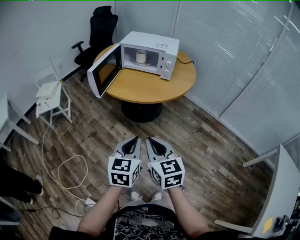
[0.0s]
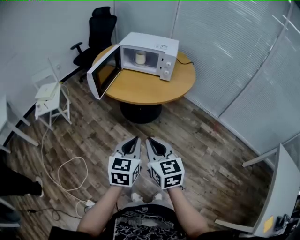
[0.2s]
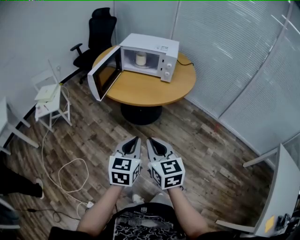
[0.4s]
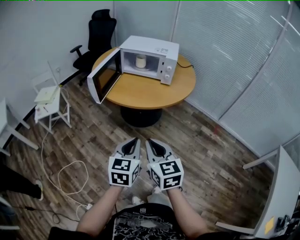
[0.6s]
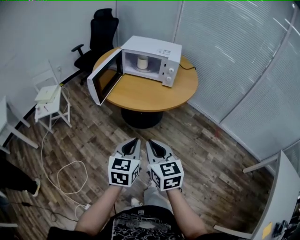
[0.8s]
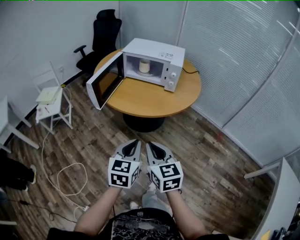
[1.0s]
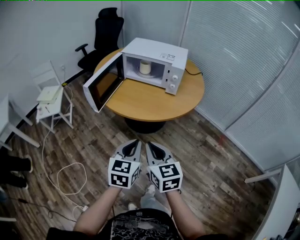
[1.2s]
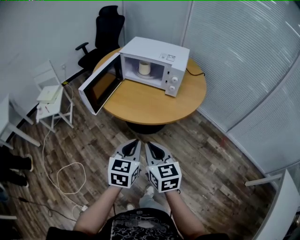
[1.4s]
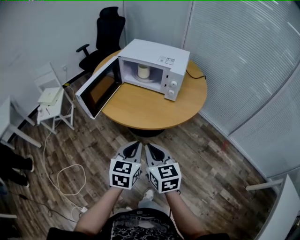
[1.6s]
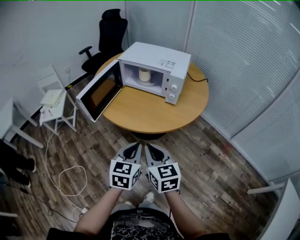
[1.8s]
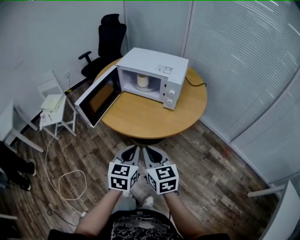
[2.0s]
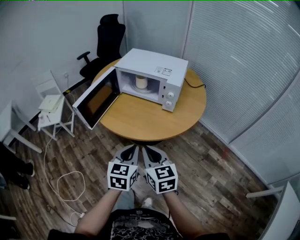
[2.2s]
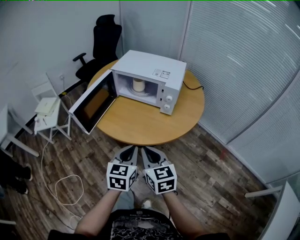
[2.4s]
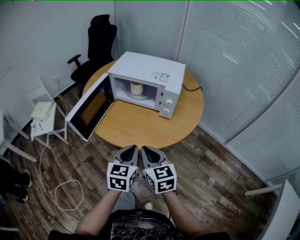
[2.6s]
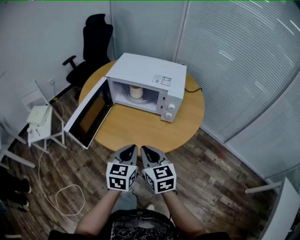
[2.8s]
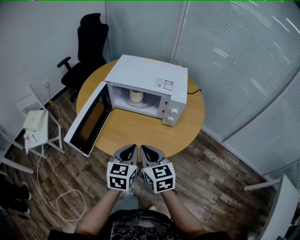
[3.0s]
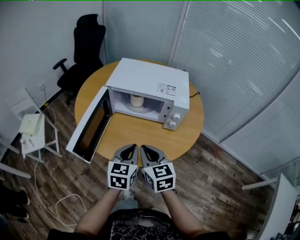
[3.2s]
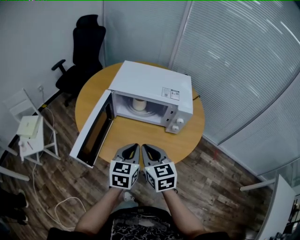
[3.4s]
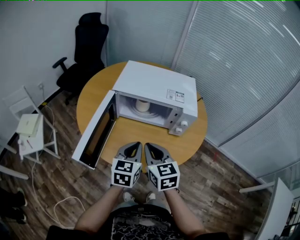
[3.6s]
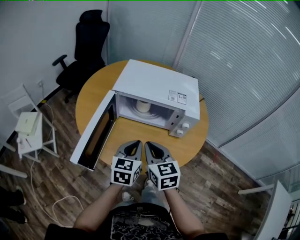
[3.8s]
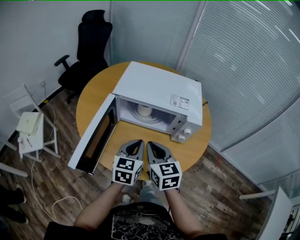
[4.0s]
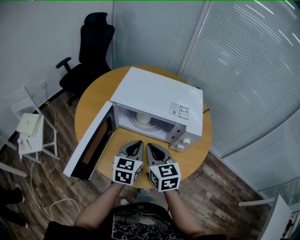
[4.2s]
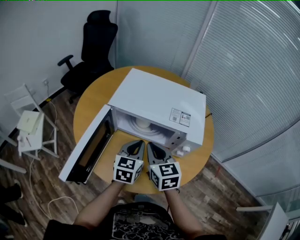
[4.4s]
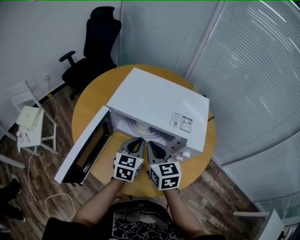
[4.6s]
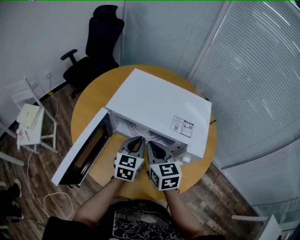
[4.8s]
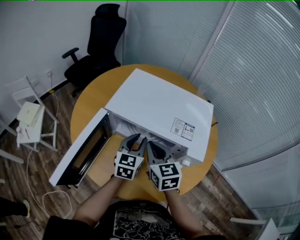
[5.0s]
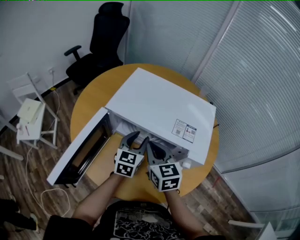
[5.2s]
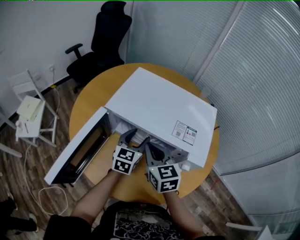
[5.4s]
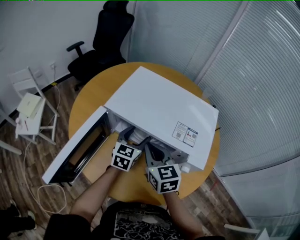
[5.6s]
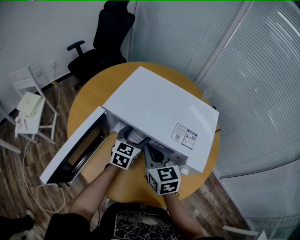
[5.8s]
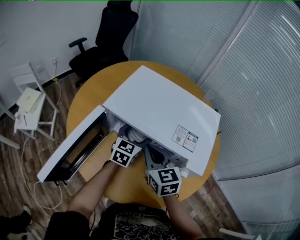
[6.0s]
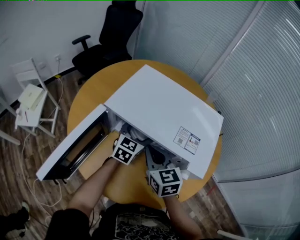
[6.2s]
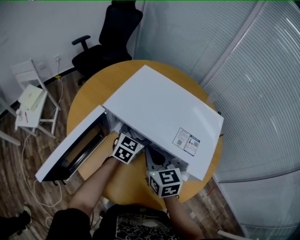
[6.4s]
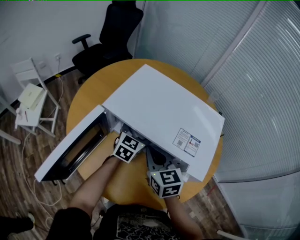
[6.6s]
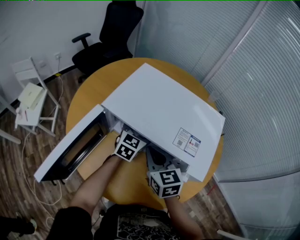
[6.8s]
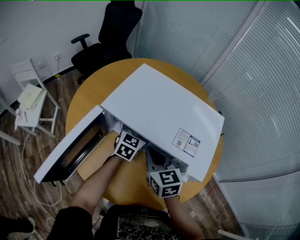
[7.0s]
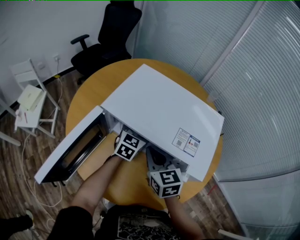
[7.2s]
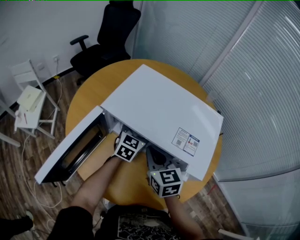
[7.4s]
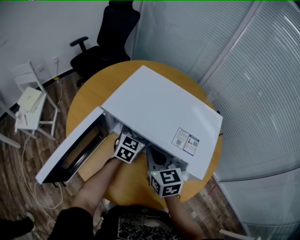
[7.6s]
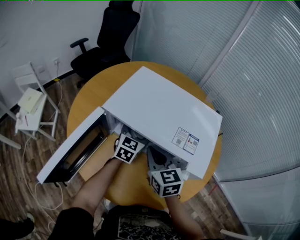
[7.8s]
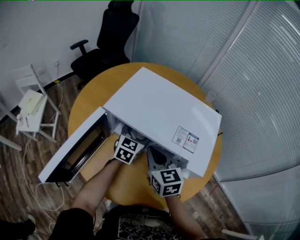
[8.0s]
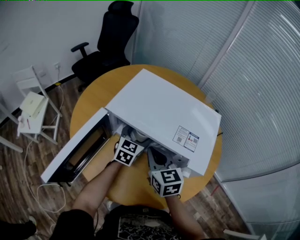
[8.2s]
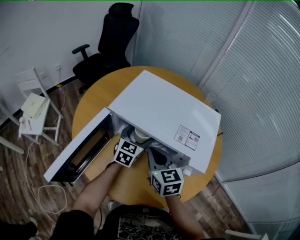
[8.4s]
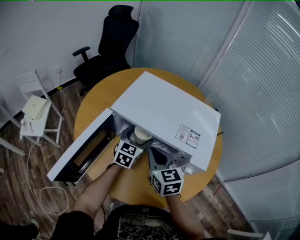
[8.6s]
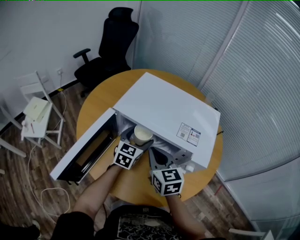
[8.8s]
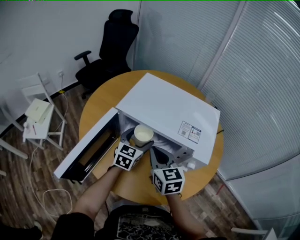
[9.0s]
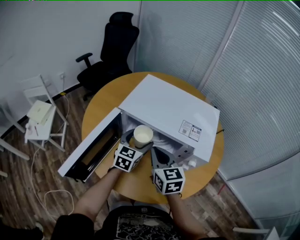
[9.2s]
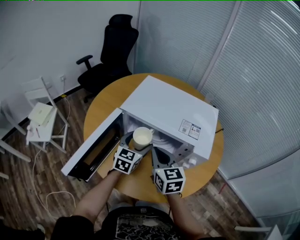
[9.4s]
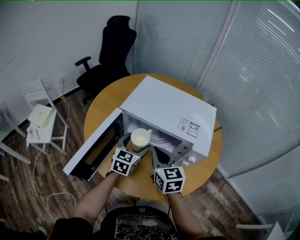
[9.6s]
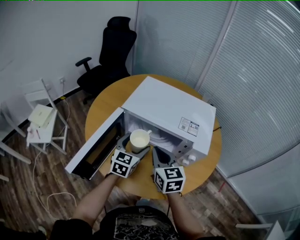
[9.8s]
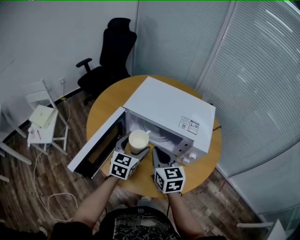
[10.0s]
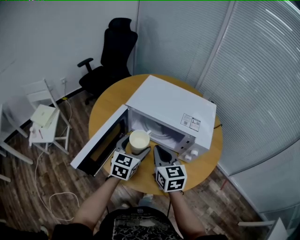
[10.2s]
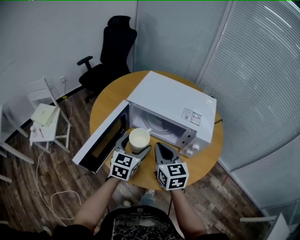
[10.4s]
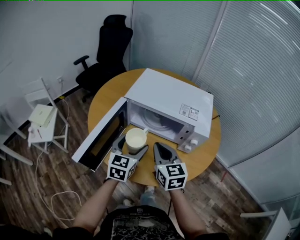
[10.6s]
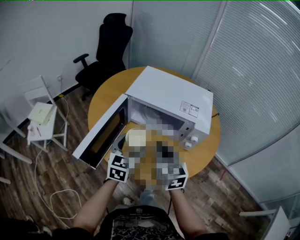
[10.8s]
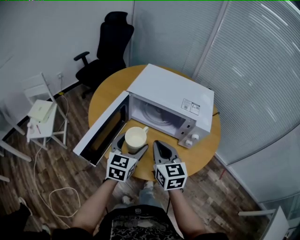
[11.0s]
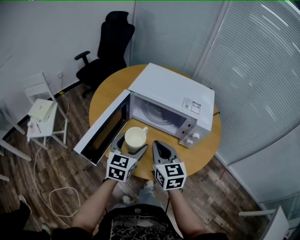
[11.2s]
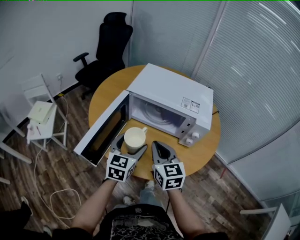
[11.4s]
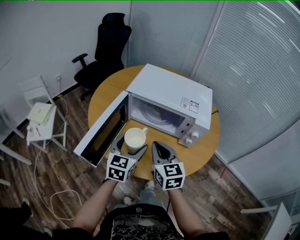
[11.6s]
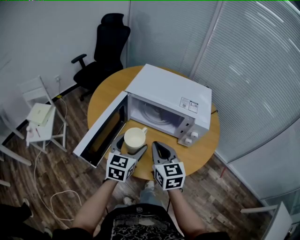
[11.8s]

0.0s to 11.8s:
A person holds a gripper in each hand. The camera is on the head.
0.0s to 1.4s: The two grippers go some 15 cm forward.
1.4s to 3.0s: The grippers both shift forward by approximately 25 cm.
3.0s to 4.4s: The grippers both shift forward by approximately 20 cm.
4.4s to 6.0s: The right gripper travels forward by approximately 10 cm. The left gripper moves forward and downward, approximately 15 cm, and opens its fingers.
6.0s to 7.4s: The grippers move only a little.
7.4s to 8.8s: The left gripper shifts about 5 cm backward. The right gripper changes place by approximately 5 cm.
8.8s to 10.4s: The right gripper travels backward by about 10 cm, while the left gripper shifts about 15 cm backward, upward and to the left.
10.4s to 11.8s: The grippers both shift backward by about 5 cm.

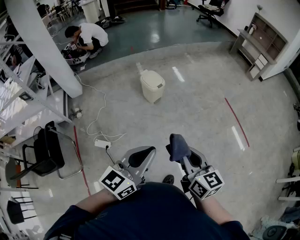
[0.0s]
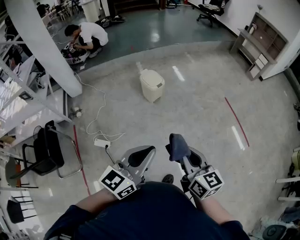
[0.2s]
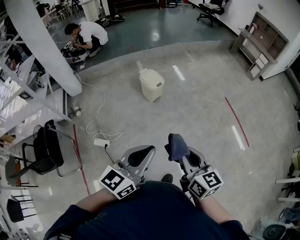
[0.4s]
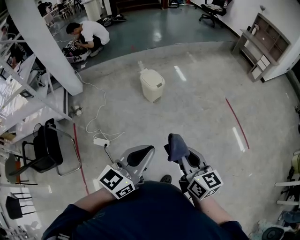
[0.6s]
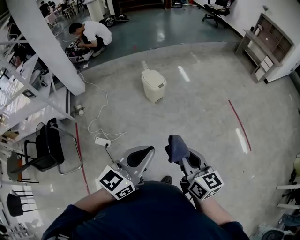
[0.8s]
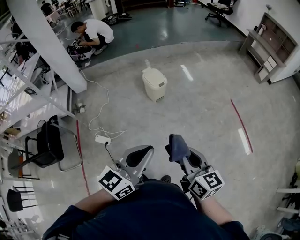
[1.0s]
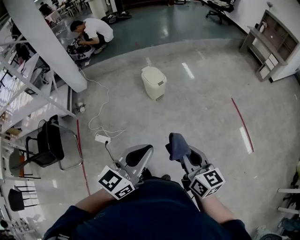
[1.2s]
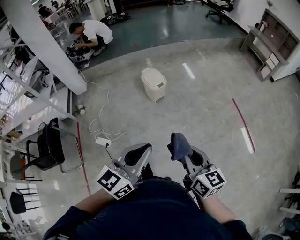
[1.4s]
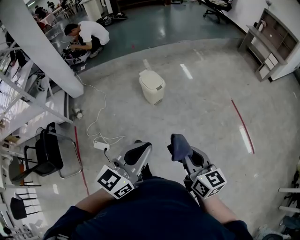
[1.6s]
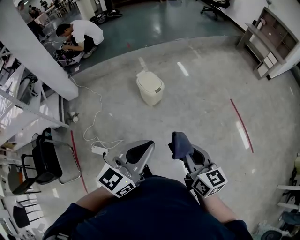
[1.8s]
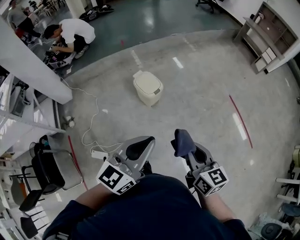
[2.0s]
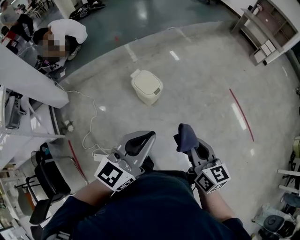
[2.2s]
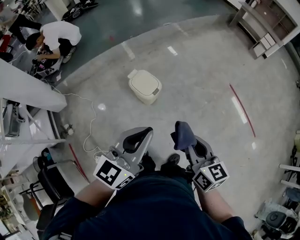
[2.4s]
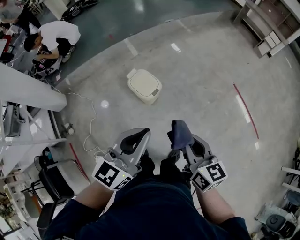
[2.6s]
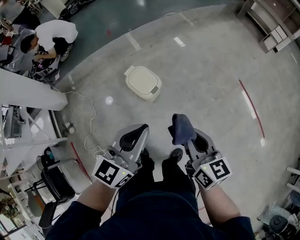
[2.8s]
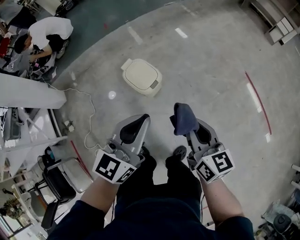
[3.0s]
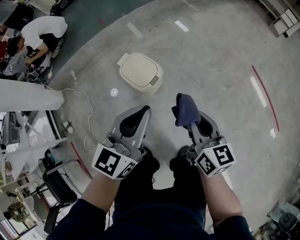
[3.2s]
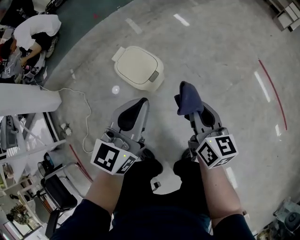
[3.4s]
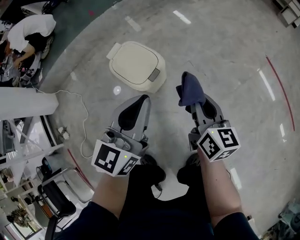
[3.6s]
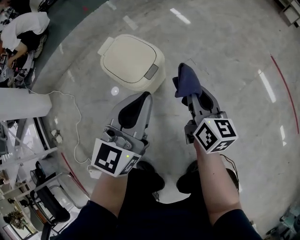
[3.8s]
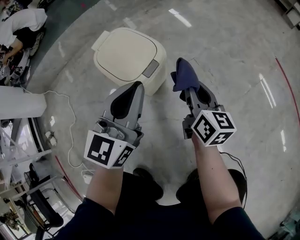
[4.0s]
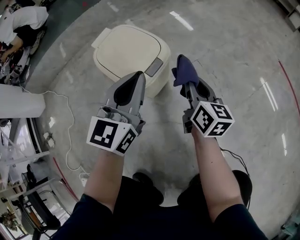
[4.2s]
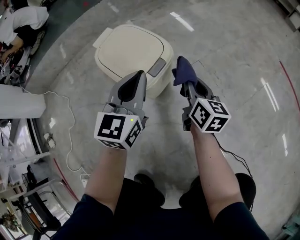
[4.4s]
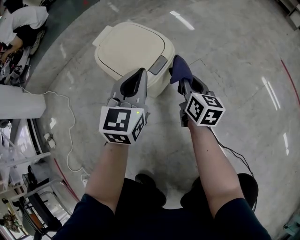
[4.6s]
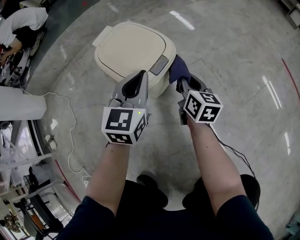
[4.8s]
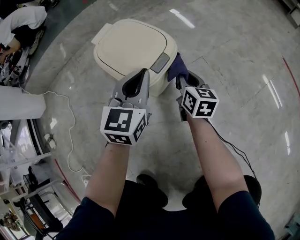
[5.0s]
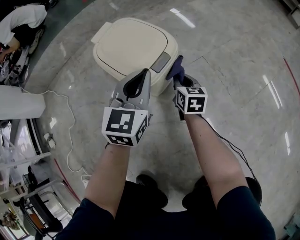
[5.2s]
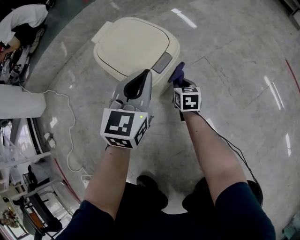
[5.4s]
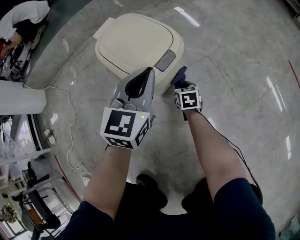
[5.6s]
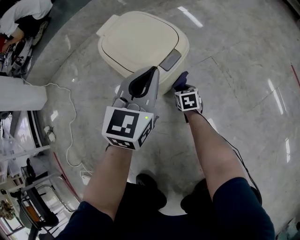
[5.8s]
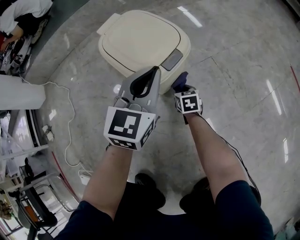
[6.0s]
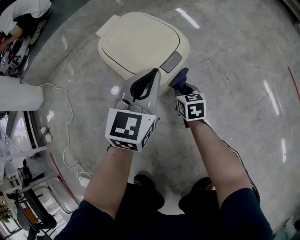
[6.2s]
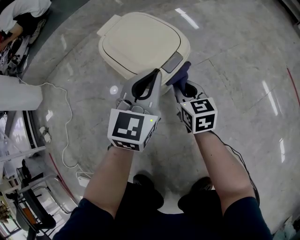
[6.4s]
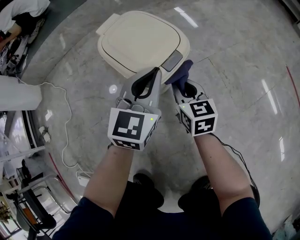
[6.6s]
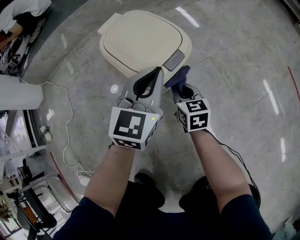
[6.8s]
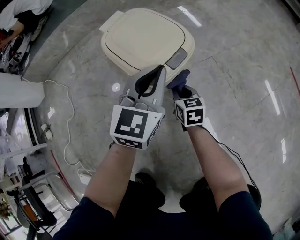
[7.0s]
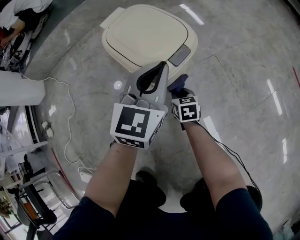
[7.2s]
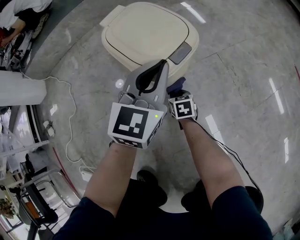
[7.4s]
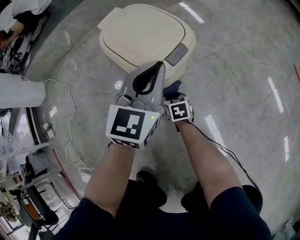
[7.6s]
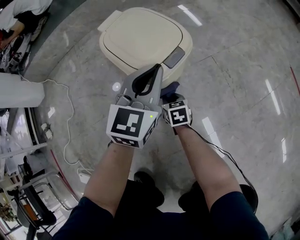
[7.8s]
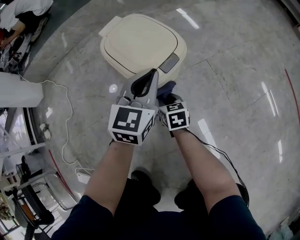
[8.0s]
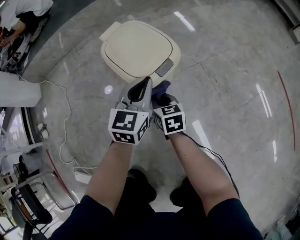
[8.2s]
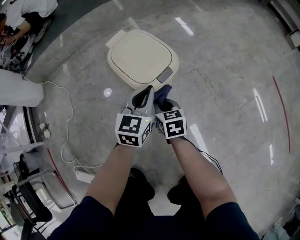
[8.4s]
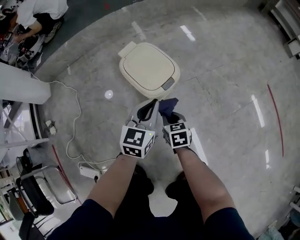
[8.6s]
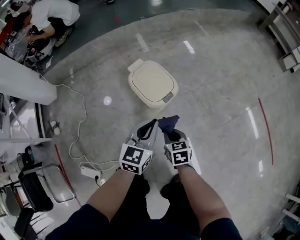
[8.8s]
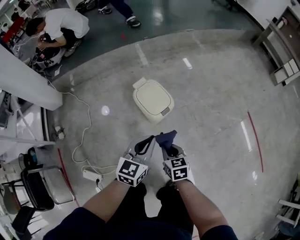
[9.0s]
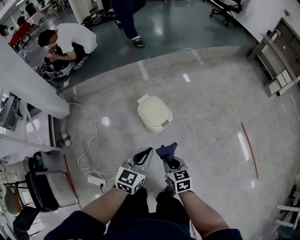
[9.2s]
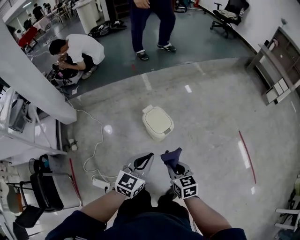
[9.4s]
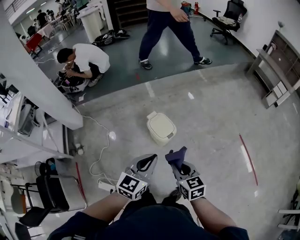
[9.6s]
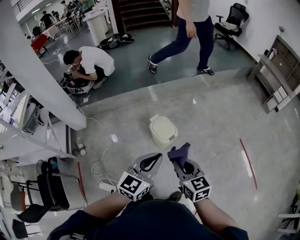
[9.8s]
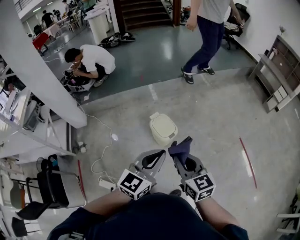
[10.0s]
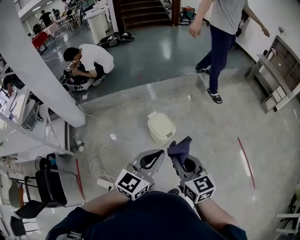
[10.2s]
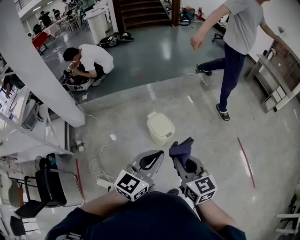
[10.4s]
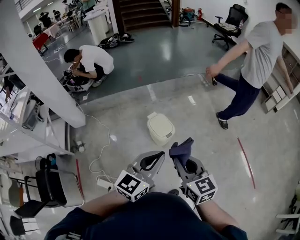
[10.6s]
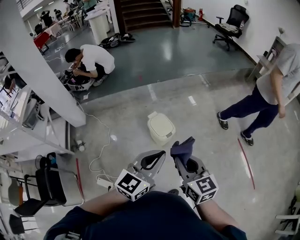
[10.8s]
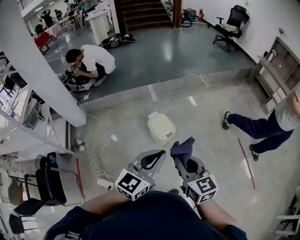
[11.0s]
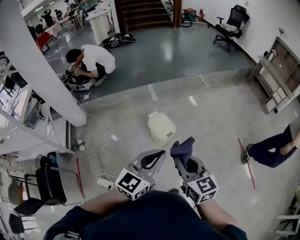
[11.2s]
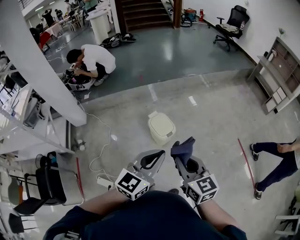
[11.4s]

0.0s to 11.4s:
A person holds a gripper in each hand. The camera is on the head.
0.0s to 1.4s: The two grippers go roughly 10 cm to the right and forward.
1.4s to 2.8s: Both grippers are carried forward, approximately 40 cm.
2.8s to 4.2s: Both grippers move downward and forward, about 60 cm.
4.2s to 5.6s: The left gripper travels downward by some 10 cm. Meanwhile the right gripper goes roughly 25 cm downward, and tips its fingers downward by about 30 degrees.
5.6s to 7.2s: The right gripper shifts some 5 cm to the left, and moves some 20 cm upward and comes back.
7.2s to 8.6s: The left gripper shifts approximately 10 cm upward and backward. The right gripper heads upward, covering approximately 25 cm.
8.6s to 10.0s: The two grippers go some 70 cm upward. The right gripper swivels about 30 degrees.
10.0s to 11.4s: There are only small adjustments of the grippers.

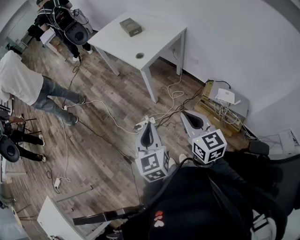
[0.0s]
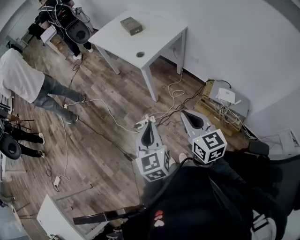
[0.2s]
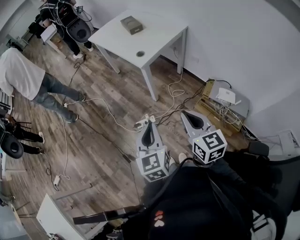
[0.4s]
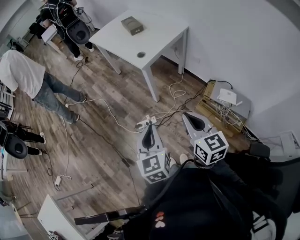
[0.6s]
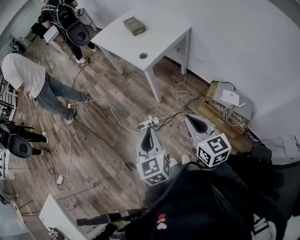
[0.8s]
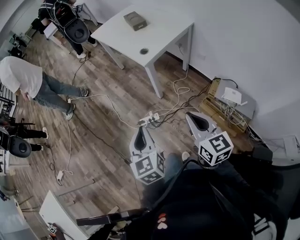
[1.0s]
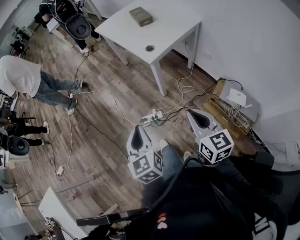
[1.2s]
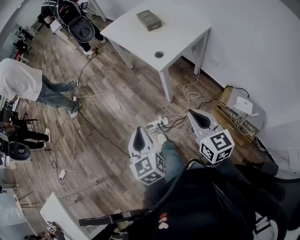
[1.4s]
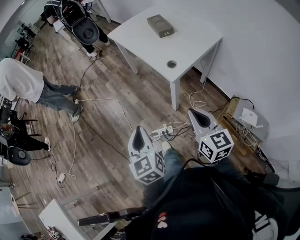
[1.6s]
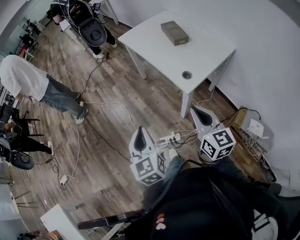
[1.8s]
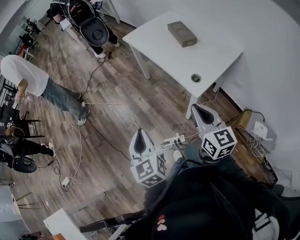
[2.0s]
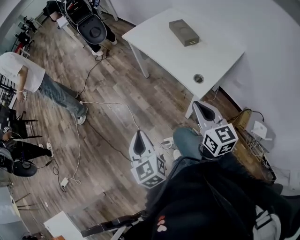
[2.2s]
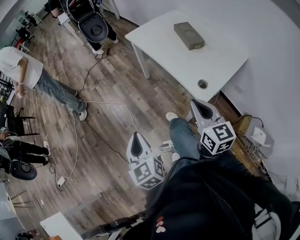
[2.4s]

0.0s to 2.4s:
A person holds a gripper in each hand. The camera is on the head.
0.0s to 1.2s: The left gripper travels to the left and forward by approximately 10 cm; the right gripper shifts approximately 5 cm forward.
1.2s to 2.4s: Both grippers are carried forward and to the left, some 40 cm.
